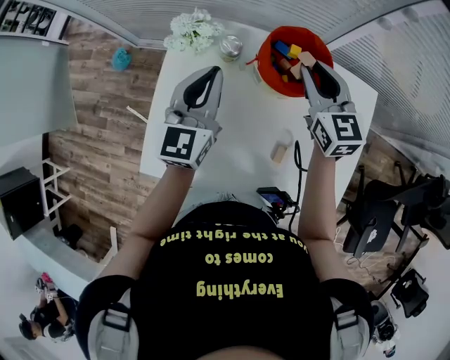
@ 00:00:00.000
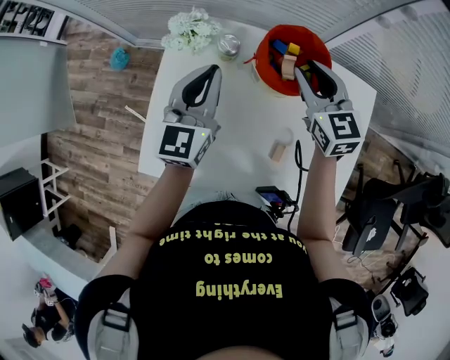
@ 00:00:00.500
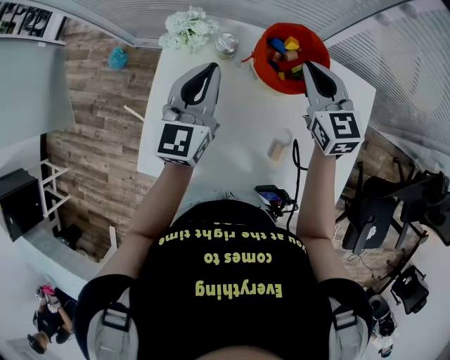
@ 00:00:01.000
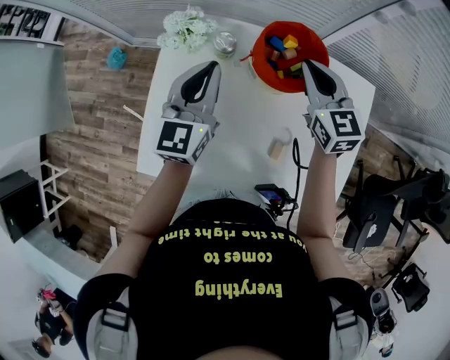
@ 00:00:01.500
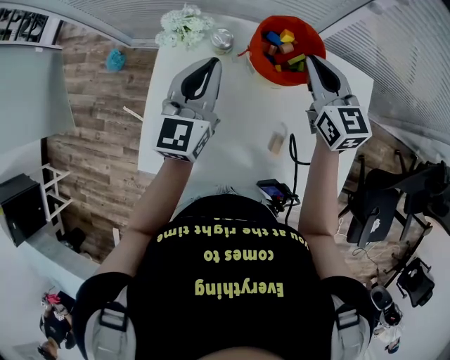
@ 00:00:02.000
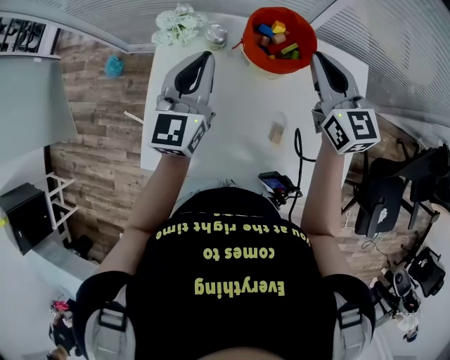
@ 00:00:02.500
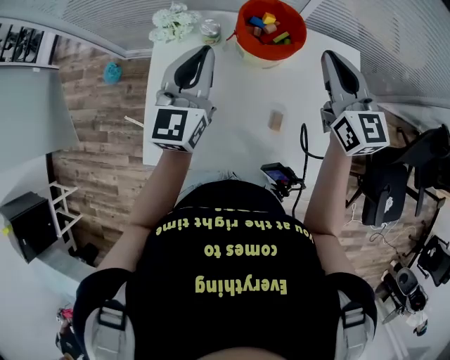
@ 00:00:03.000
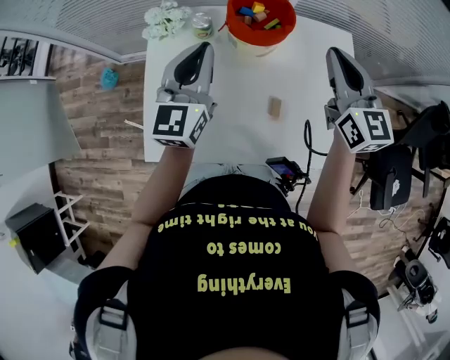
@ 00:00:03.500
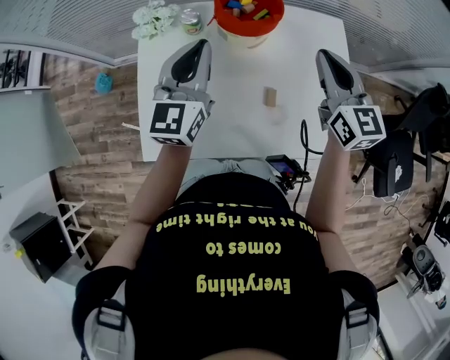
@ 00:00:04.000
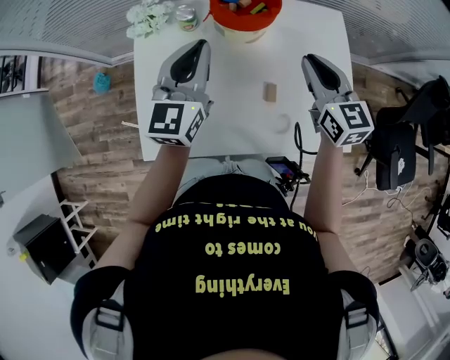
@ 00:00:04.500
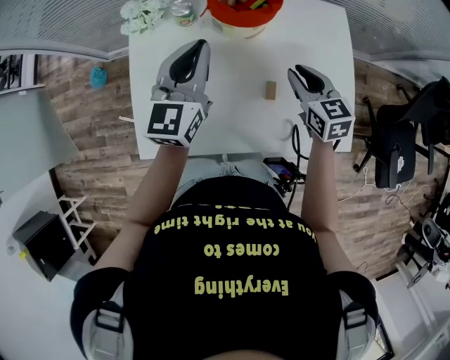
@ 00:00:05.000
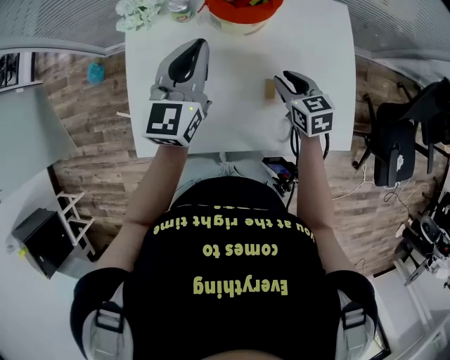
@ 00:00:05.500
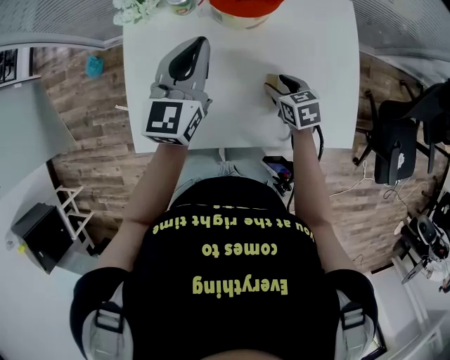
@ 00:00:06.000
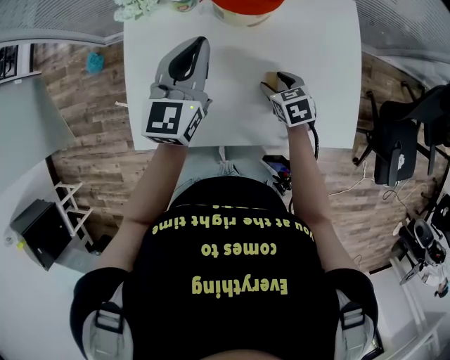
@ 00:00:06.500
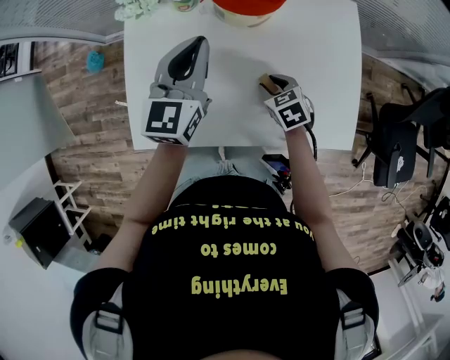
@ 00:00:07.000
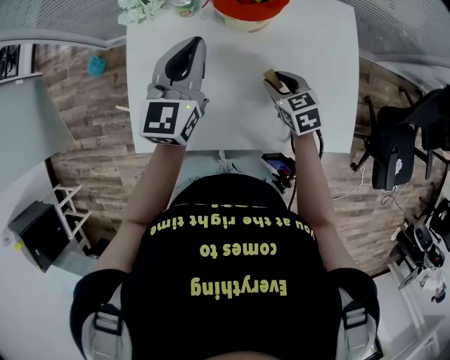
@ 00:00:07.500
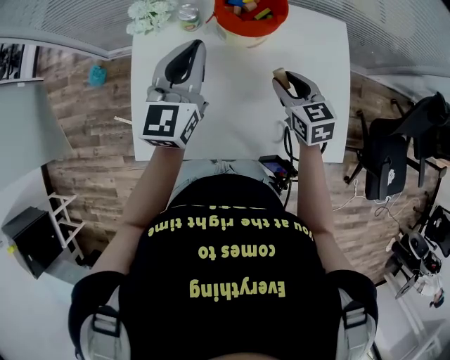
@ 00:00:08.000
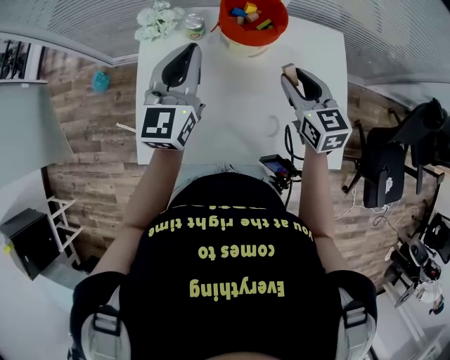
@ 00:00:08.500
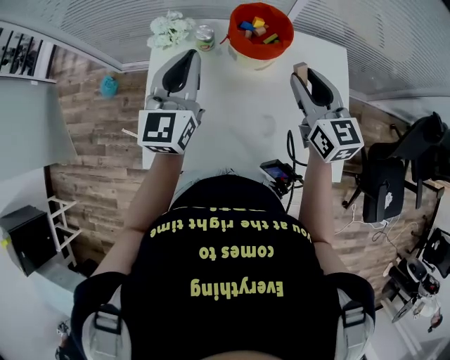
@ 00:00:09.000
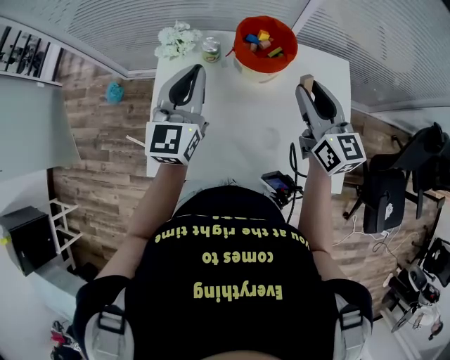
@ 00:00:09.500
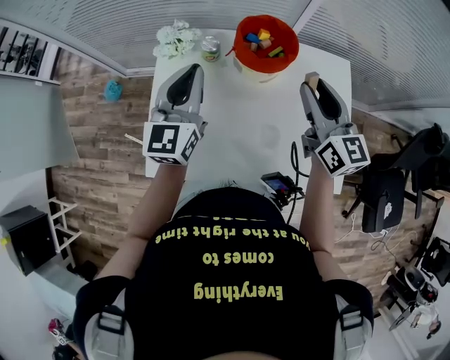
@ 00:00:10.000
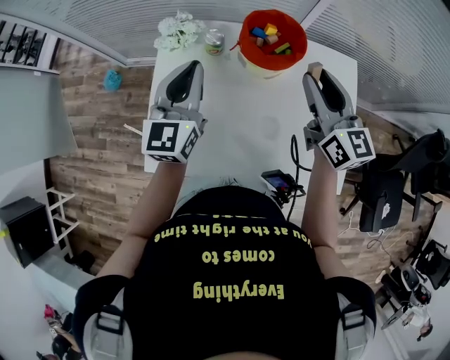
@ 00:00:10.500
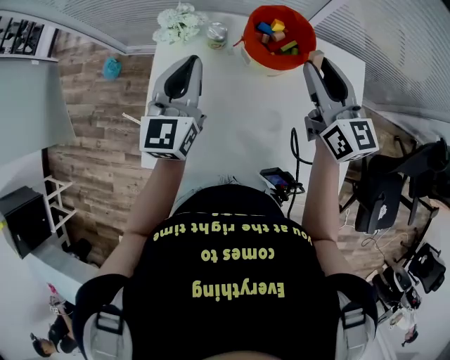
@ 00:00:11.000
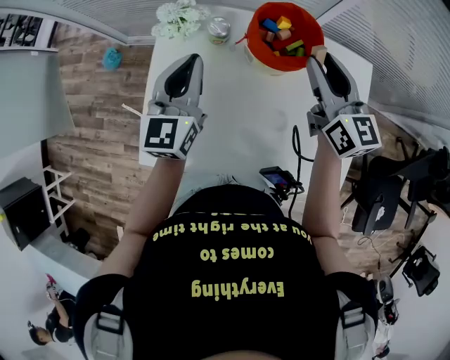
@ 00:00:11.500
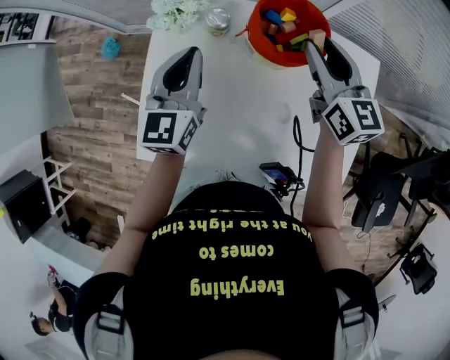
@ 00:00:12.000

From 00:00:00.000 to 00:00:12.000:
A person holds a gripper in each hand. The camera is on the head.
From 00:00:00.000 to 00:00:02.000: The grippers make only small movements.
From 00:00:02.000 to 00:00:04.000: The left gripper travels backward by some 10 cm; the right gripper goes about 15 cm backward and to the right.
From 00:00:04.000 to 00:00:06.000: The right gripper goes approximately 30 cm downward, points its fingers roughly 40 degrees further downward, and opens; the left gripper heads downward, covering about 5 cm.
From 00:00:06.000 to 00:00:08.000: The right gripper goes some 15 cm upward, and changes its angle by about 20 degrees.
From 00:00:08.000 to 00:00:10.000: The right gripper is displaced upward by about 20 cm, and points its fingers roughly 30 degrees further upward, while the left gripper shifts by approximately 5 cm.
From 00:00:10.000 to 00:00:12.000: The right gripper goes some 15 cm forward and downward. Meanwhile the left gripper moves downward, approximately 5 cm.

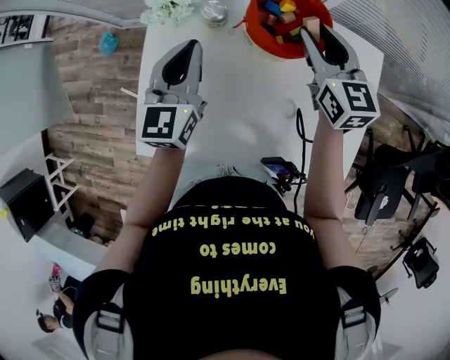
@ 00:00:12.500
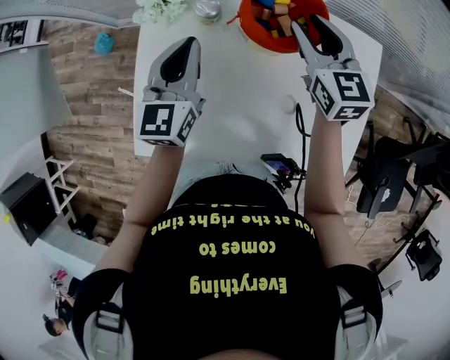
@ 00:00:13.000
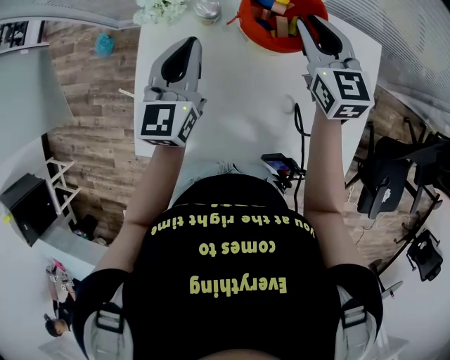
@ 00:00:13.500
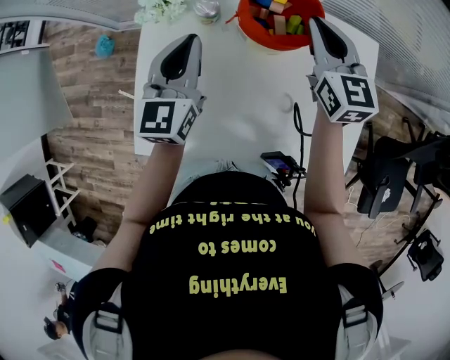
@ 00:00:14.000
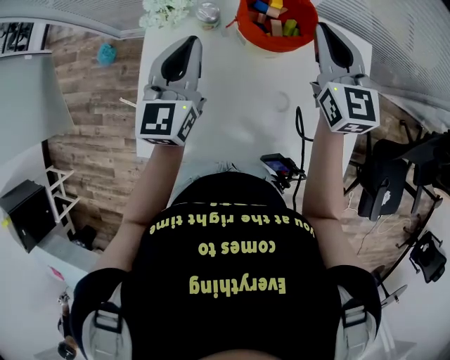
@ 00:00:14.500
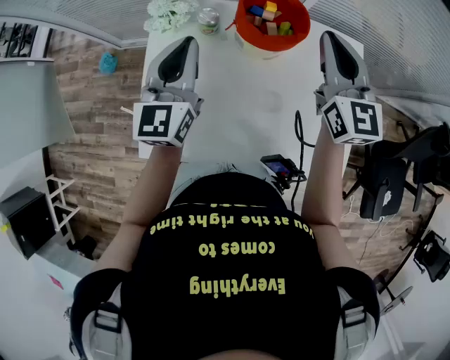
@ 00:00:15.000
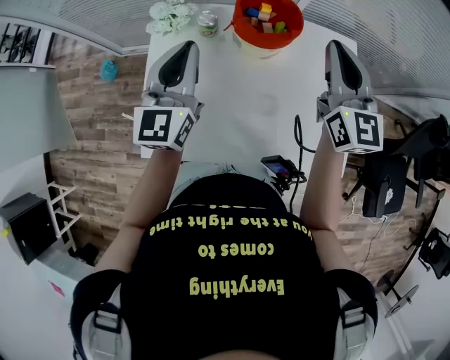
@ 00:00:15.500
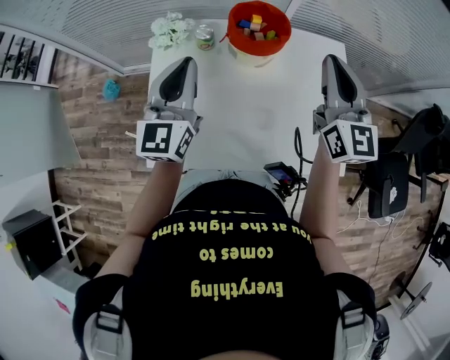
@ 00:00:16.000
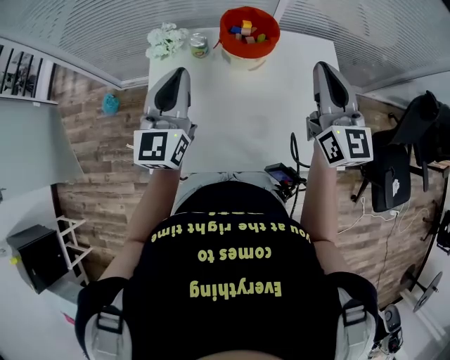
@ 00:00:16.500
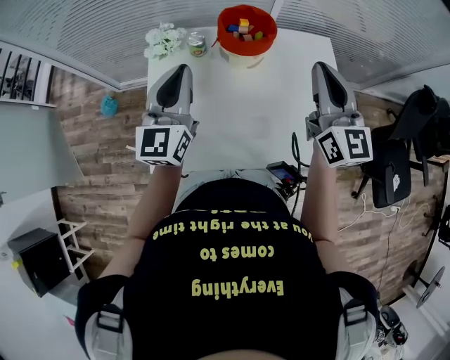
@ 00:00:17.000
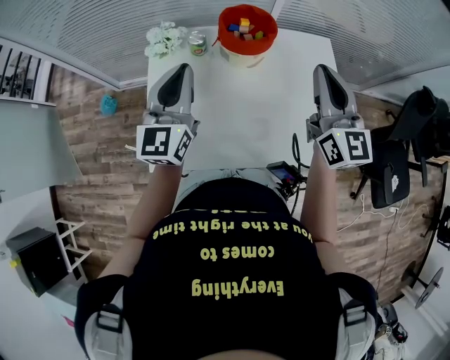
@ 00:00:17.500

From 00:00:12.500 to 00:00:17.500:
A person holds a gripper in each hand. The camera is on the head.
From 00:00:12.500 to 00:00:15.000: The left gripper is displaced upward by some 5 cm; the right gripper shifts about 10 cm upward and backward, and closes its fingers.
From 00:00:15.000 to 00:00:17.500: The right gripper moves backward, about 15 cm; the left gripper travels backward by approximately 10 cm.

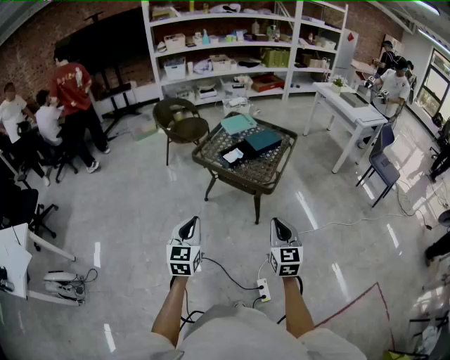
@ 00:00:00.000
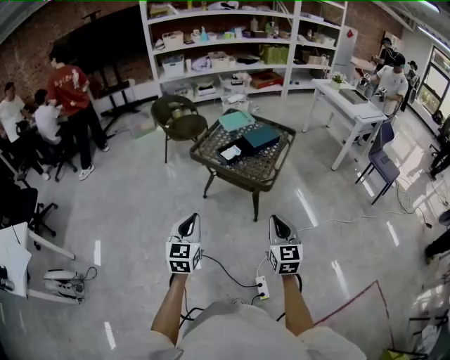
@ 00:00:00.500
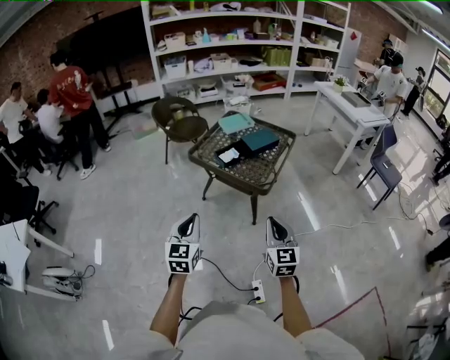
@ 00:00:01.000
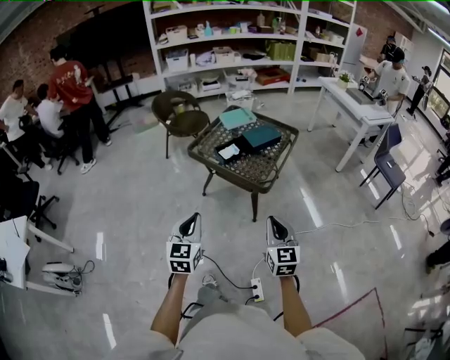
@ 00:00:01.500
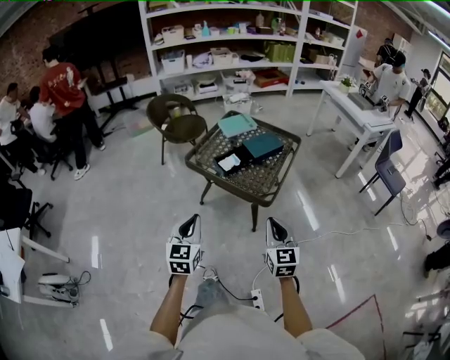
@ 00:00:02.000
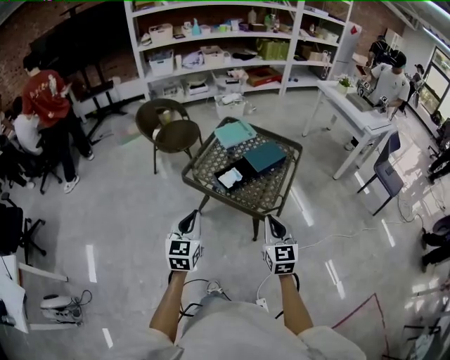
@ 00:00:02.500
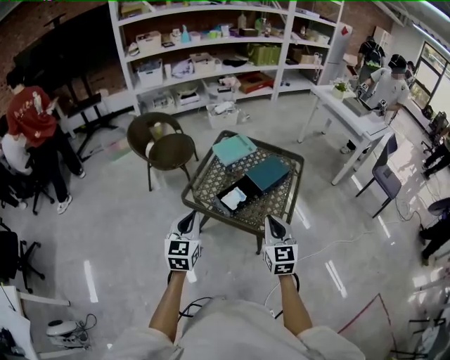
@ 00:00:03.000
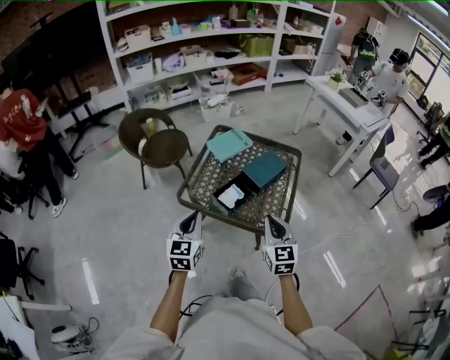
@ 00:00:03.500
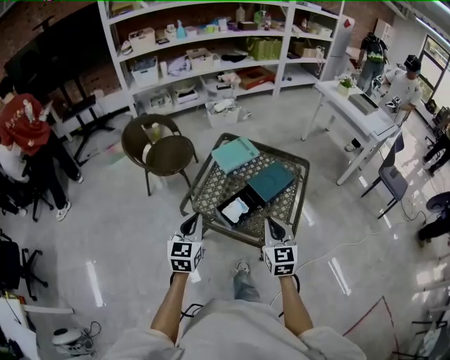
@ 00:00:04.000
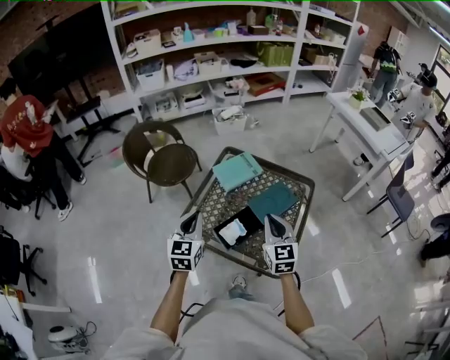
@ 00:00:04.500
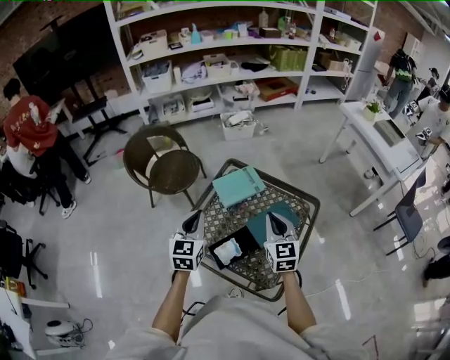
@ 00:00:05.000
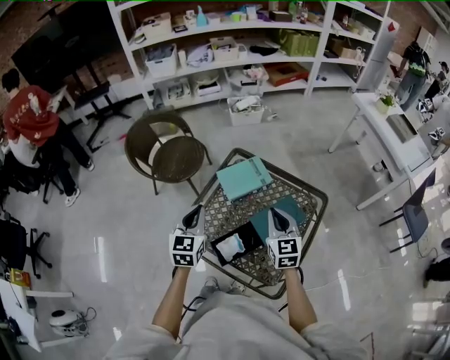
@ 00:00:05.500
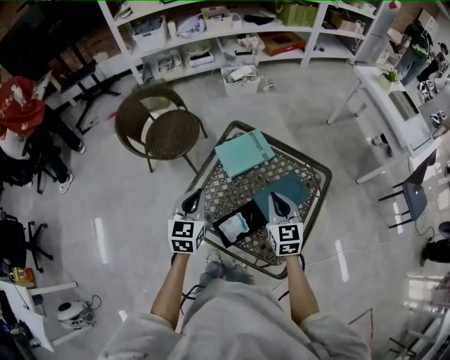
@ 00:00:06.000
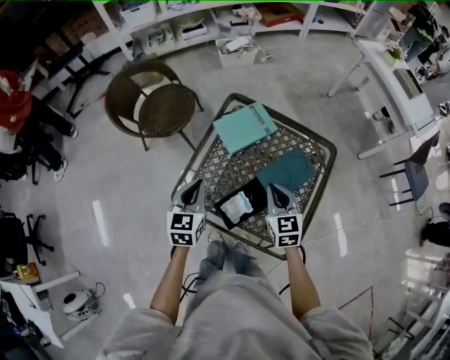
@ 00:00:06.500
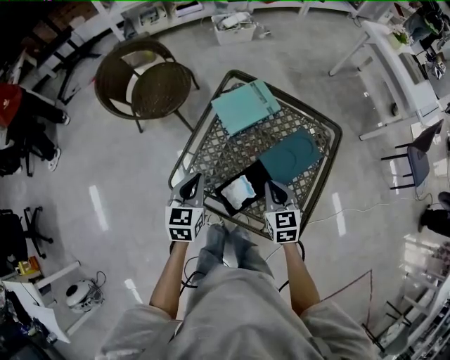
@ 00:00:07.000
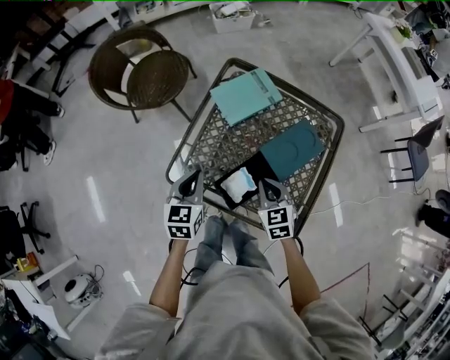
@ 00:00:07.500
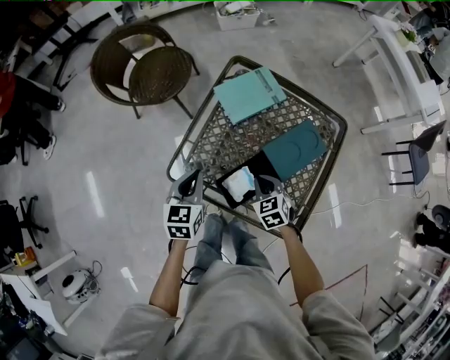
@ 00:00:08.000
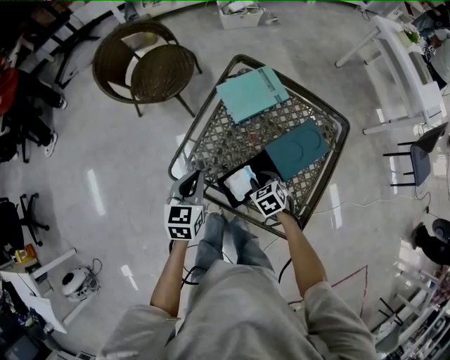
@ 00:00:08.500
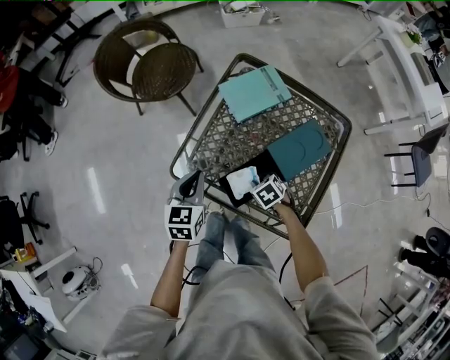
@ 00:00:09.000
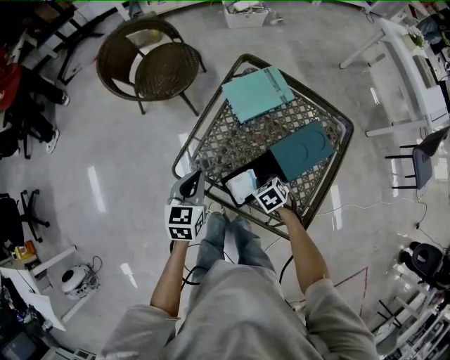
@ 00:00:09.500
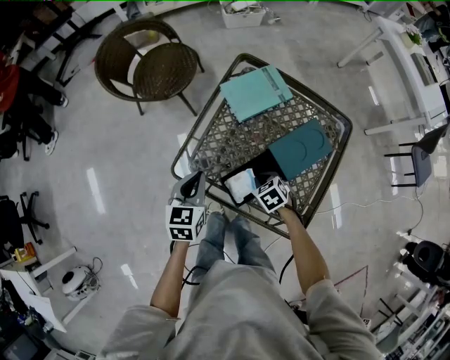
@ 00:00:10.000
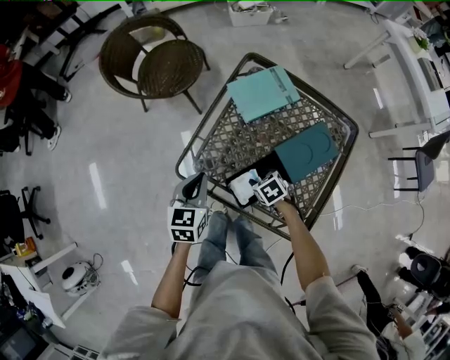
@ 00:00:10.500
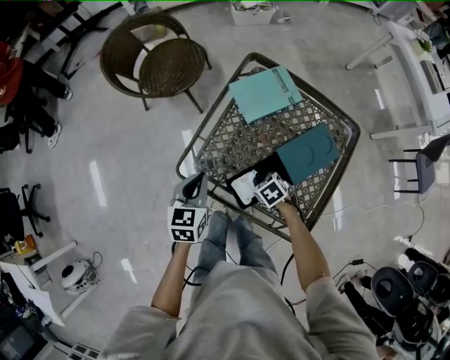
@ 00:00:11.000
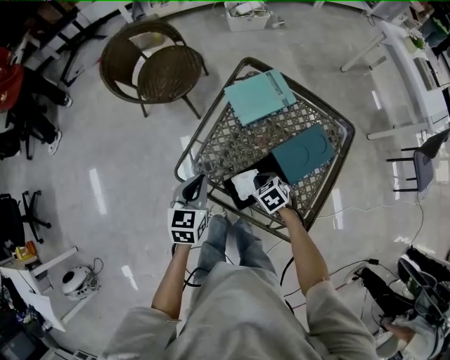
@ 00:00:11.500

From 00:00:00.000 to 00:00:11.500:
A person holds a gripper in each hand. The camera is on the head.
From 00:00:00.000 to 00:00:02.000: The two grippers go some 15 cm forward.
From 00:00:02.000 to 00:00:04.000: Both grippers move forward, about 35 cm.
From 00:00:04.000 to 00:00:06.000: The grippers both shift forward by approximately 25 cm.
From 00:00:06.000 to 00:00:07.500: The left gripper heads downward, covering approximately 10 cm; the right gripper is displaced downward and backward by approximately 15 cm, and rotates some 20 degrees.
From 00:00:07.500 to 00:00:09.500: The right gripper shifts some 15 cm downward, turns by approximately 30 degrees, and opens and closes again.
From 00:00:09.500 to 00:00:11.500: The right gripper opens and closes again.
